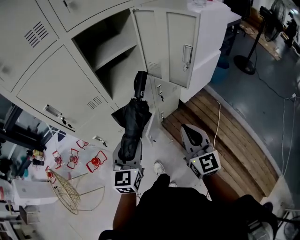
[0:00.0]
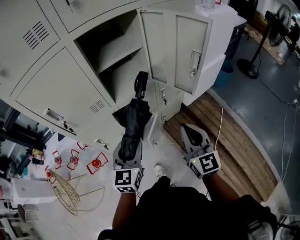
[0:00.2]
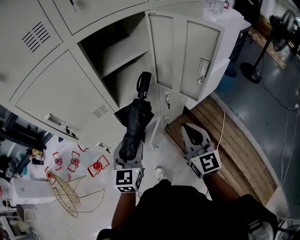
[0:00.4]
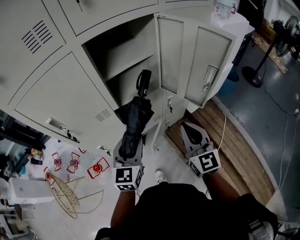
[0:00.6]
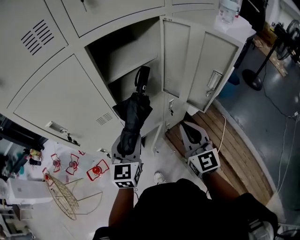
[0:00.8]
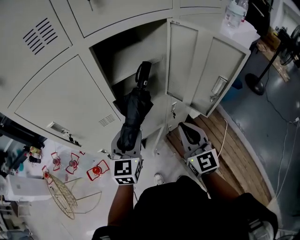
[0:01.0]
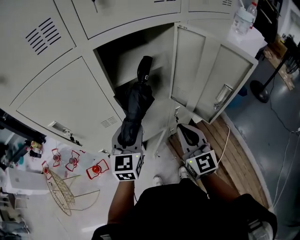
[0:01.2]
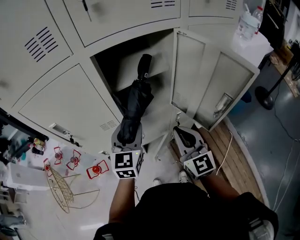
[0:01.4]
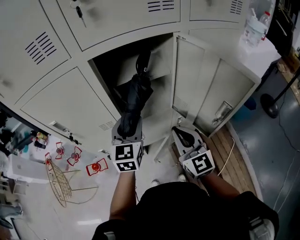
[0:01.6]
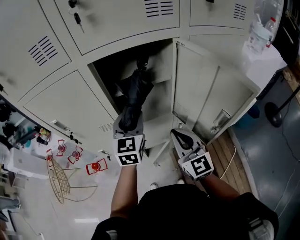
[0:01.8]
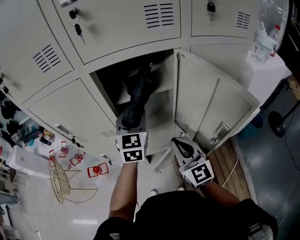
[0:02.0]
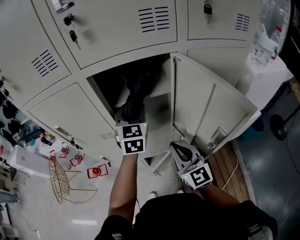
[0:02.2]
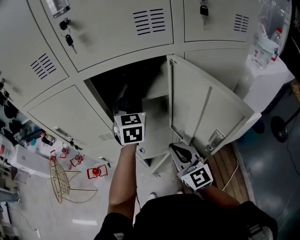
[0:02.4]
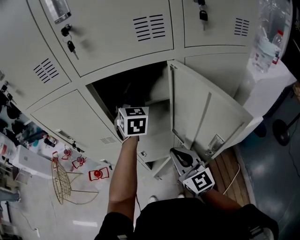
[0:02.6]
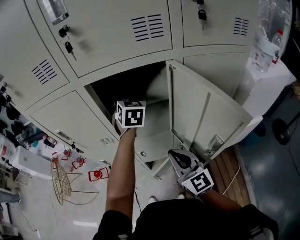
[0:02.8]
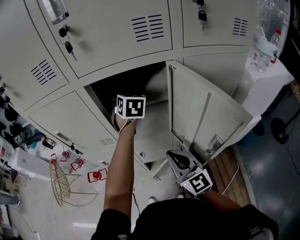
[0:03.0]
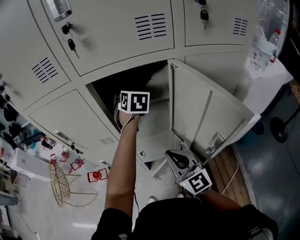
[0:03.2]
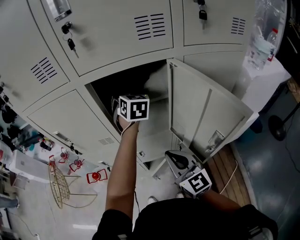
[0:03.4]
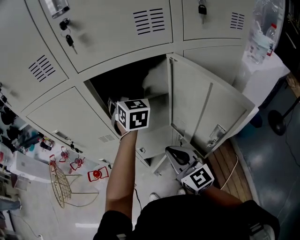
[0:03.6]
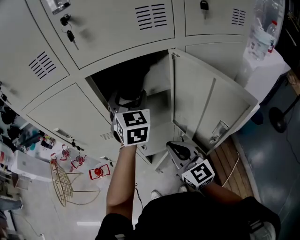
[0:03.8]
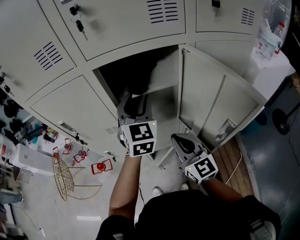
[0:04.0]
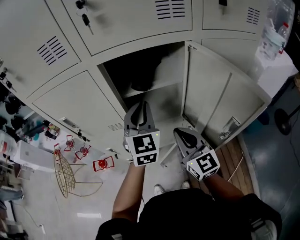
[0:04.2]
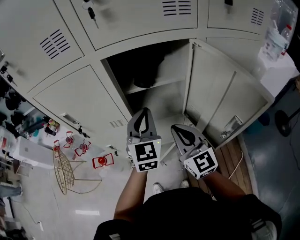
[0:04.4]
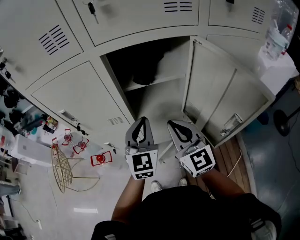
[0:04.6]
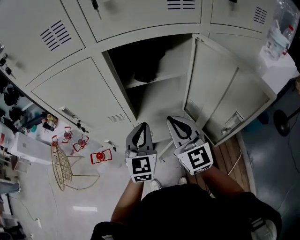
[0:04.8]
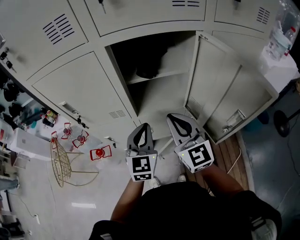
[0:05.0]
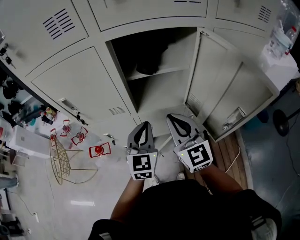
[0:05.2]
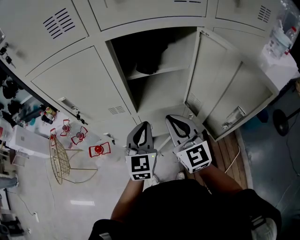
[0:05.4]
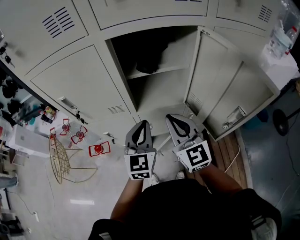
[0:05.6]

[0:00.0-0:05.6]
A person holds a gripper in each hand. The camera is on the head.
0:00.0 to 0:01.4: The two grippers go about 20 cm forward.
0:01.4 to 0:02.8: The right gripper changes its angle by some 20 degrees. Meanwhile the left gripper shifts some 20 cm forward, to the right and upward, and turns by about 30 degrees.
0:02.8 to 0:04.2: The left gripper moves backward and to the left, about 15 cm, and closes up.
0:04.2 to 0:05.6: The left gripper travels downward and backward by roughly 15 cm.

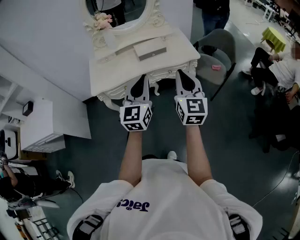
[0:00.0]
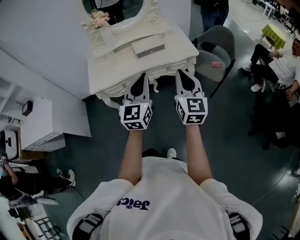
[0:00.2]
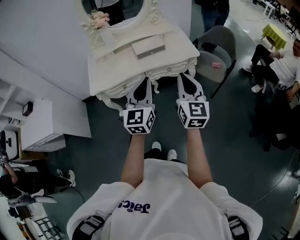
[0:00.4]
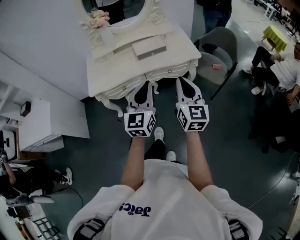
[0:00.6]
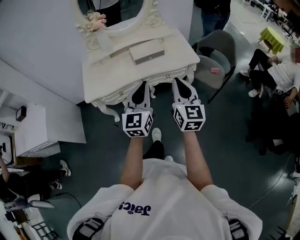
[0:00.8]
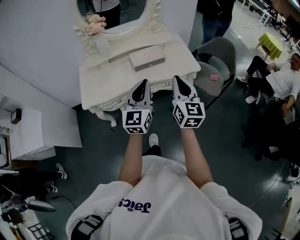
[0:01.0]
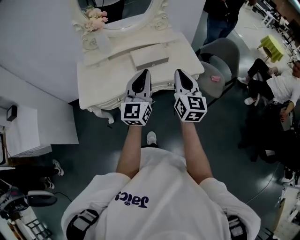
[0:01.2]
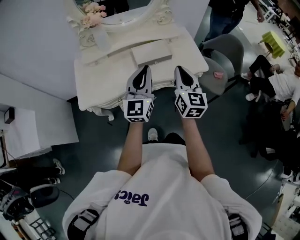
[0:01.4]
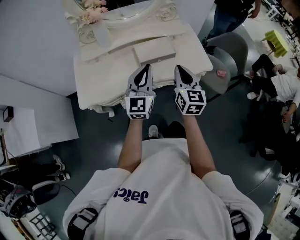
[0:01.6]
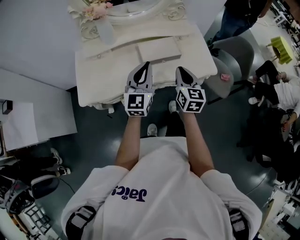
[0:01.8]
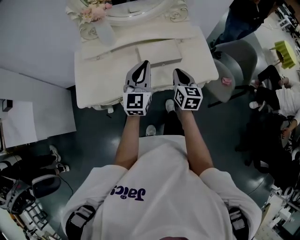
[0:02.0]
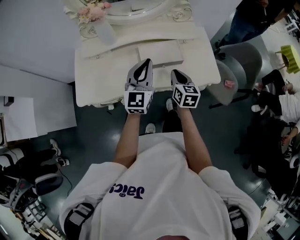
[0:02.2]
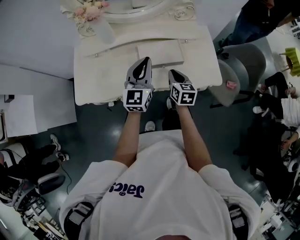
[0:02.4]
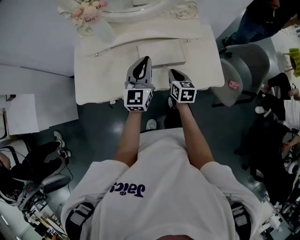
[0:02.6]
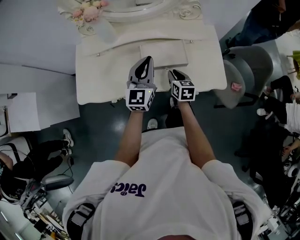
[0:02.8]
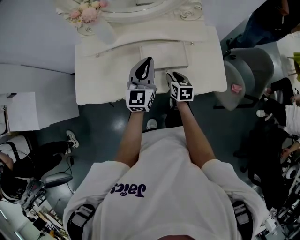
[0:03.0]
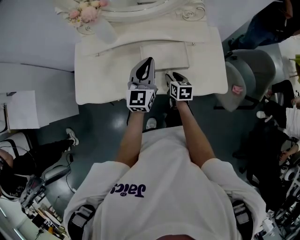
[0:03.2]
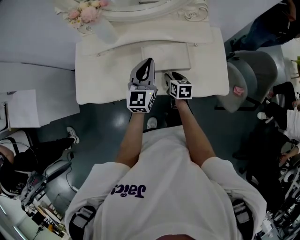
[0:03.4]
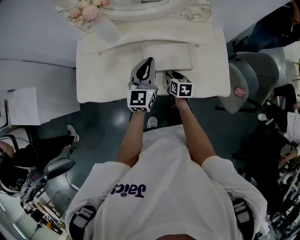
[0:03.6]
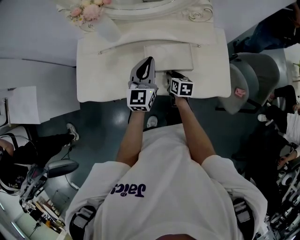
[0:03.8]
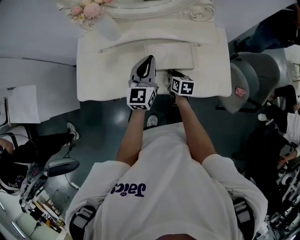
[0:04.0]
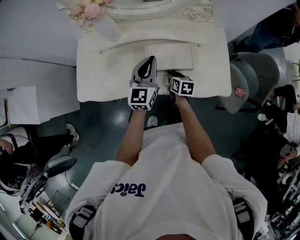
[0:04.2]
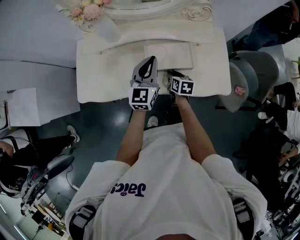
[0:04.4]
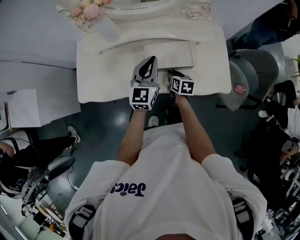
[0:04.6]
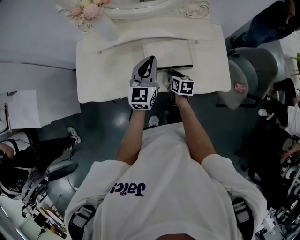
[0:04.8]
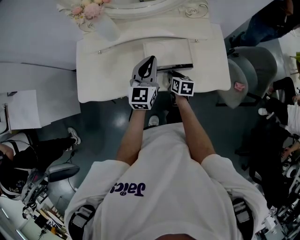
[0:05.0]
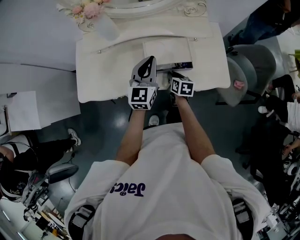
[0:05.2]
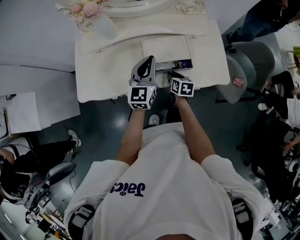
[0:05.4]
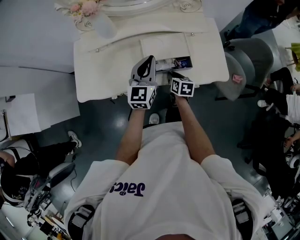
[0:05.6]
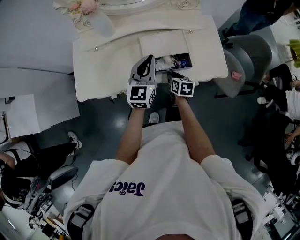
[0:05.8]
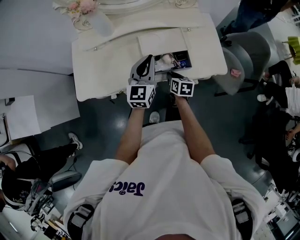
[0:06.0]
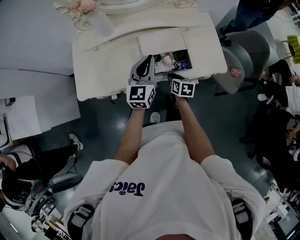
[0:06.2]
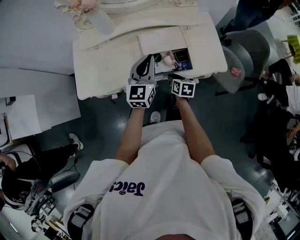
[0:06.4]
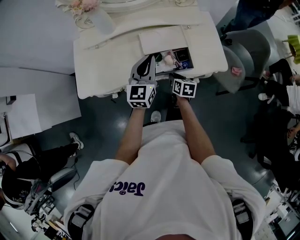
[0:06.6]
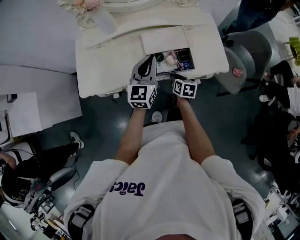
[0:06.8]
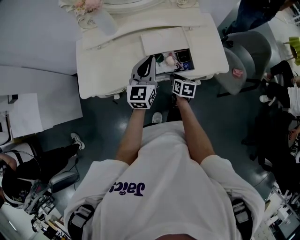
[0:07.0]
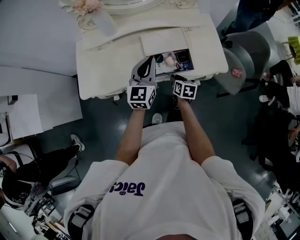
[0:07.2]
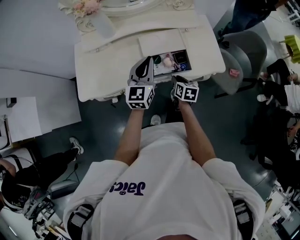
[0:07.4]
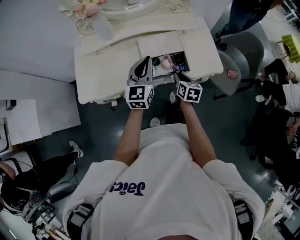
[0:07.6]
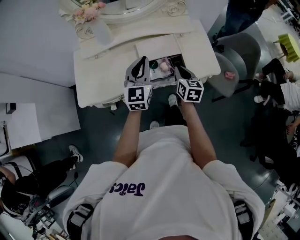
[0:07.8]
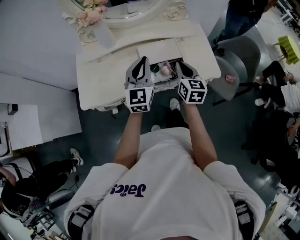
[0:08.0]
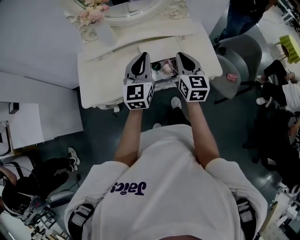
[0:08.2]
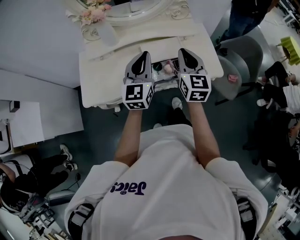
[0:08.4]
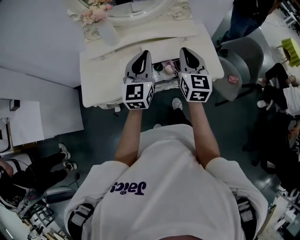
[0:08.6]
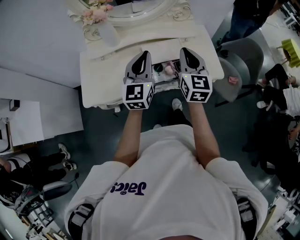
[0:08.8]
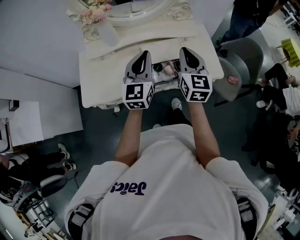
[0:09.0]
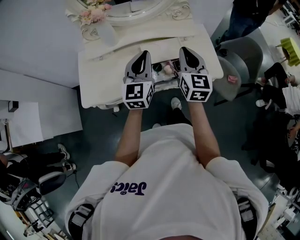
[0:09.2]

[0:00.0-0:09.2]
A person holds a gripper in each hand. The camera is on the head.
0:00.0 to 0:01.6: The right gripper moves forward and downward, about 30 cm; the left gripper travels forward by some 30 cm.
0:01.6 to 0:03.0: The left gripper is displaced forward and downward by roughly 20 cm; the right gripper shifts approximately 30 cm downward and forward, angles its fingers downward, by roughly 30 degrees, and opens up.
0:03.0 to 0:04.6: The grippers stay close to where they were, moving slightly.
0:04.6 to 0:06.2: The two grippers go some 10 cm backward.
0:06.2 to 0:07.6: The right gripper travels upward by about 5 cm.
0:07.6 to 0:09.2: The right gripper heads upward, covering roughly 25 cm, and rotates roughly 40 degrees, while the left gripper heads upward, covering roughly 10 cm.

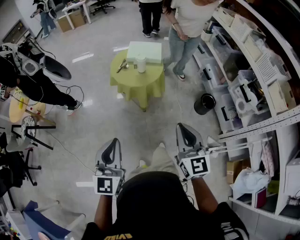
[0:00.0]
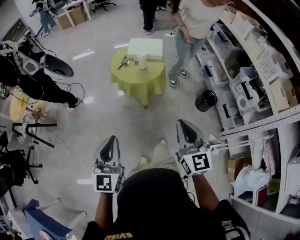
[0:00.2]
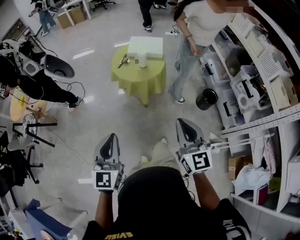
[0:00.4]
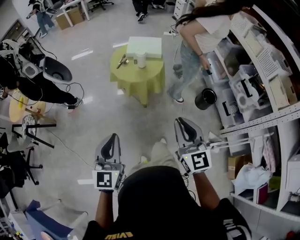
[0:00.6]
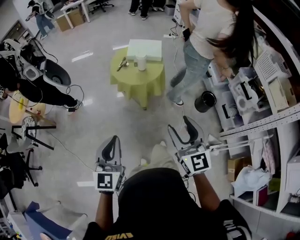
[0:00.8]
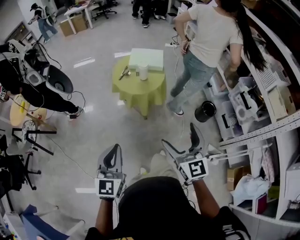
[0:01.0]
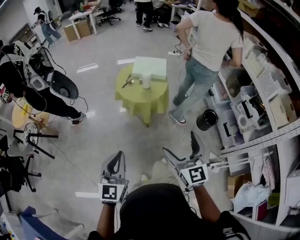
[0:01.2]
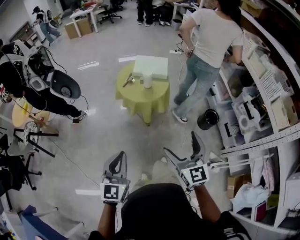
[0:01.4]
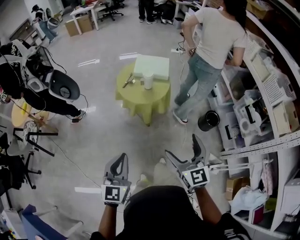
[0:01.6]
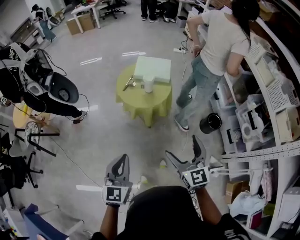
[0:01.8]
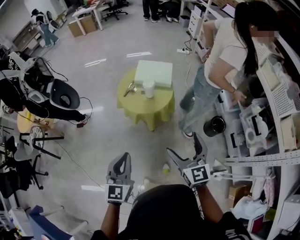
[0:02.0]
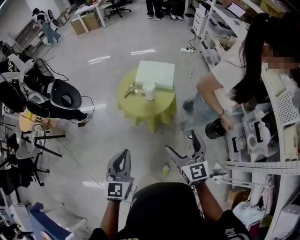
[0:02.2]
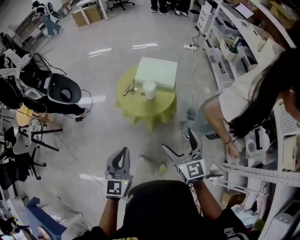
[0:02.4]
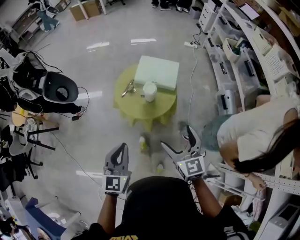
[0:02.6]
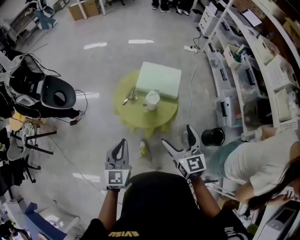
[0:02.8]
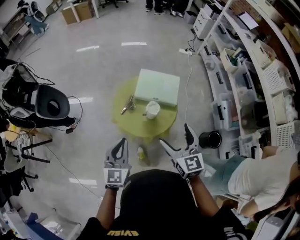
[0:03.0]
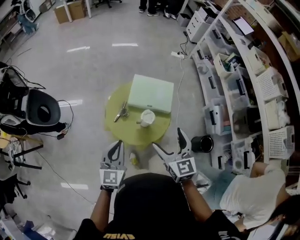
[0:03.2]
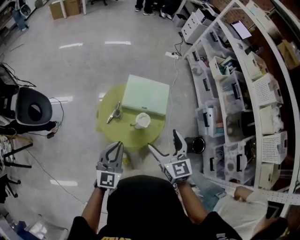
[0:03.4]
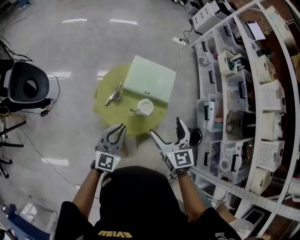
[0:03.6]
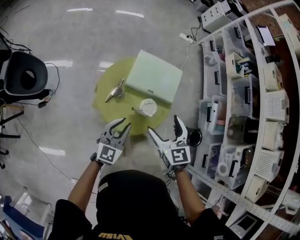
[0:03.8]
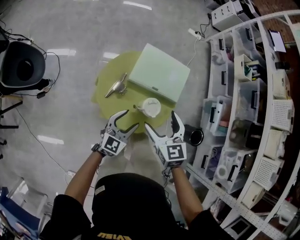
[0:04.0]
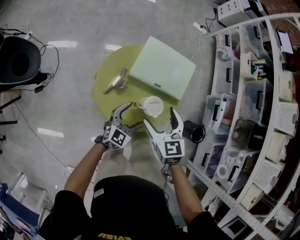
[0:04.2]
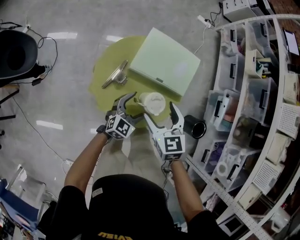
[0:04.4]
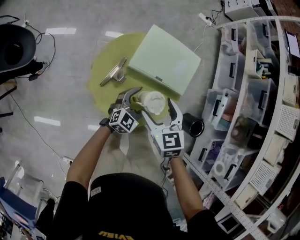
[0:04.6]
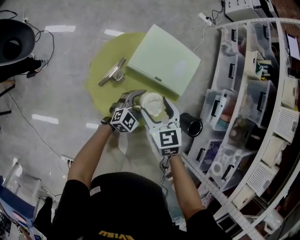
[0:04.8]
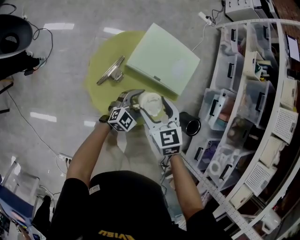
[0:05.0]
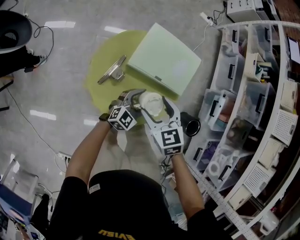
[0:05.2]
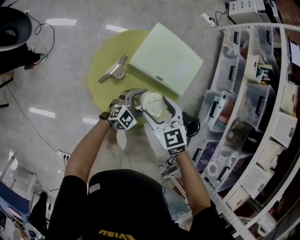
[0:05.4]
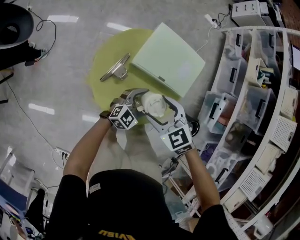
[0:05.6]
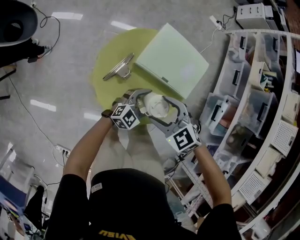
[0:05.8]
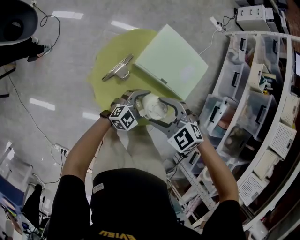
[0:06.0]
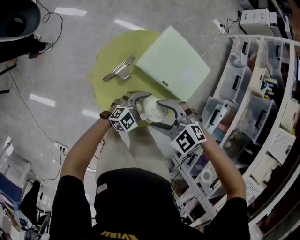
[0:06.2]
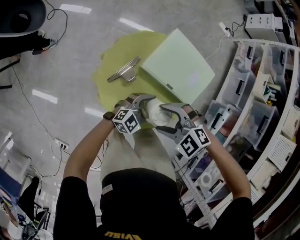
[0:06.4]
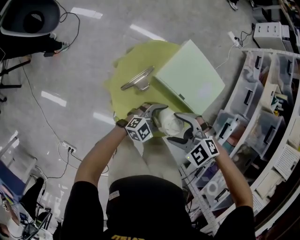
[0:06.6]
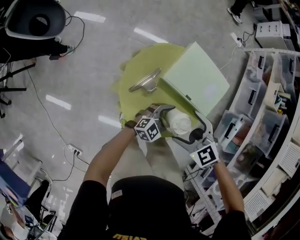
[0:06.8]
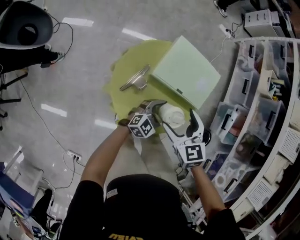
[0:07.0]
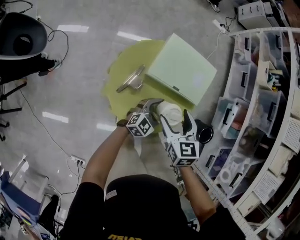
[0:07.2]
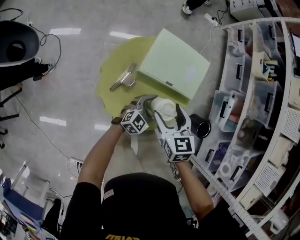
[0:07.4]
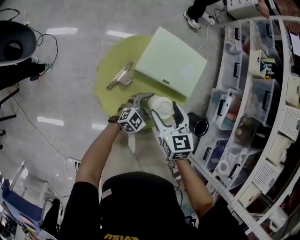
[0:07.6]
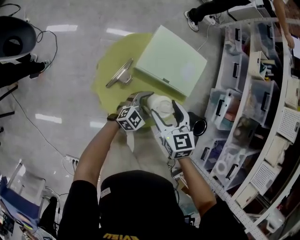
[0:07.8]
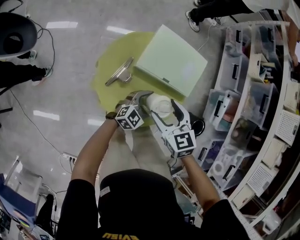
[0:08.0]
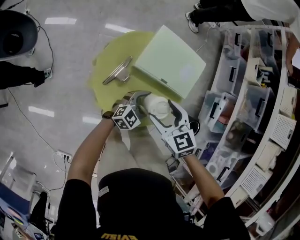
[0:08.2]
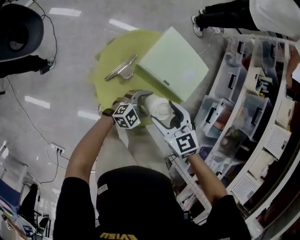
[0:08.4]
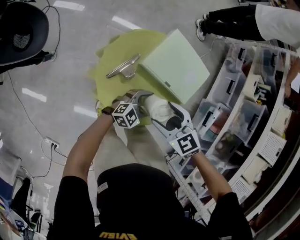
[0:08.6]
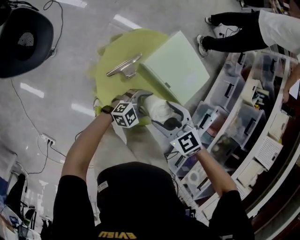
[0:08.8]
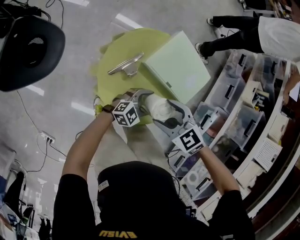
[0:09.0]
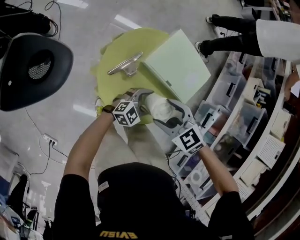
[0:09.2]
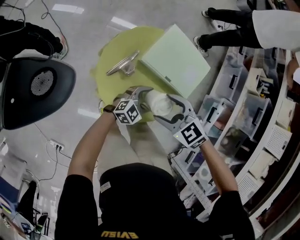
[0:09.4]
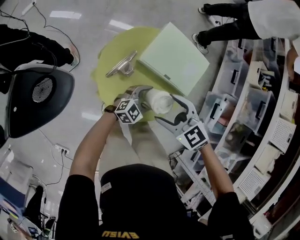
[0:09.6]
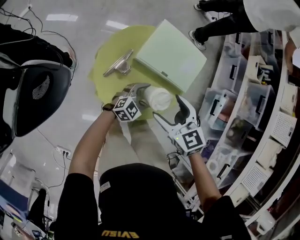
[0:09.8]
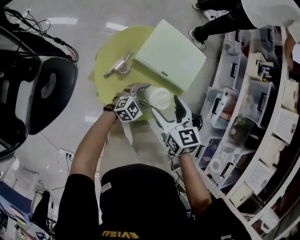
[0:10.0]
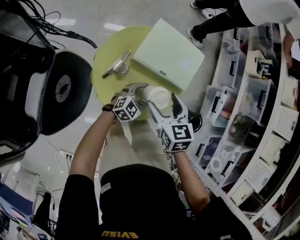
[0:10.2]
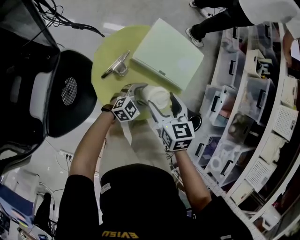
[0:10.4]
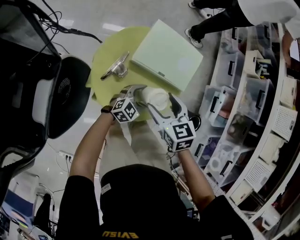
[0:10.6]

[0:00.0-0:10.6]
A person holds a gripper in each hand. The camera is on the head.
0:00.0 to 0:01.6: Both grippers travel together forward, roughly 5 cm. The right gripper opens its fingers.
0:01.6 to 0:03.0: The pair of grippers is taken forward, some 40 cm.
0:03.0 to 0:04.6: Both grippers travel together downward and forward, some 35 cm. The left gripper changes its angle by some 40 degrees, and opens up; the right gripper turns by approximately 30 degrees.
0:04.6 to 0:06.0: The right gripper swivels about 60 degrees.
0:06.0 to 0:07.6: The right gripper rotates roughly 60 degrees.
0:07.6 to 0:09.0: The right gripper swivels roughly 60 degrees.
0:09.0 to 0:10.6: The right gripper turns by roughly 50 degrees.
